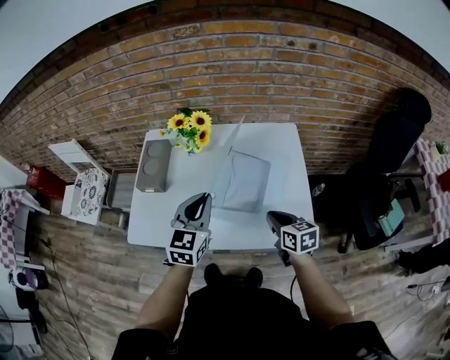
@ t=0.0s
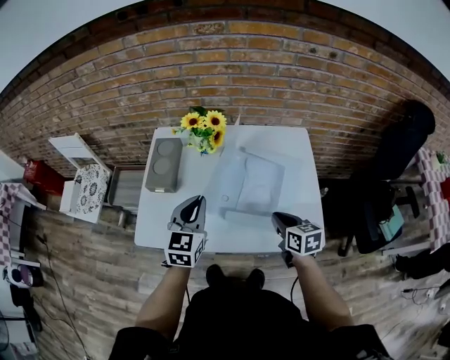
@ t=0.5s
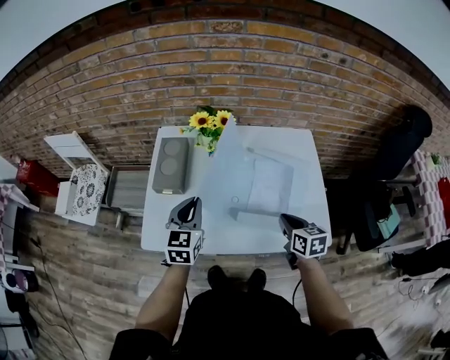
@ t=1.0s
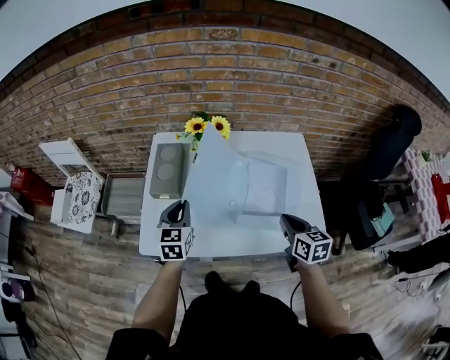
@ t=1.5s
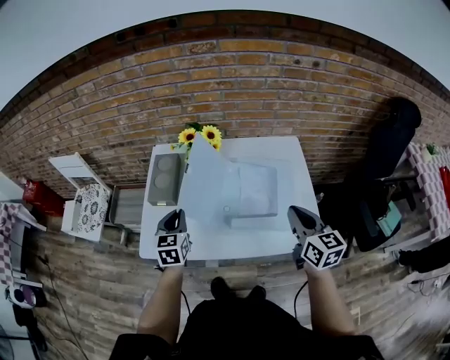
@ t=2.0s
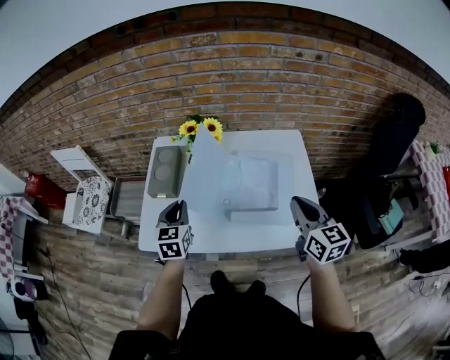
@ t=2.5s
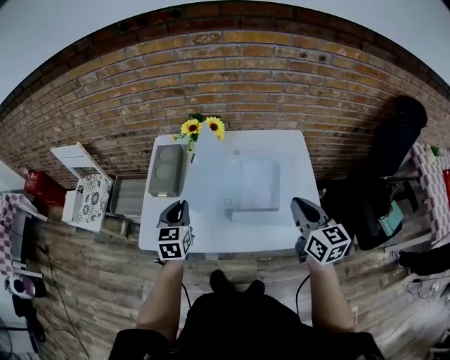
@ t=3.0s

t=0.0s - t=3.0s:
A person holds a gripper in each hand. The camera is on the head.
t=0.0s - t=1.5s: The left gripper moves to the left and downward, some 20 cm, while the right gripper ends up about 5 cm from where it was.
t=1.5s - t=3.0s: The right gripper heads upward, covering roughly 10 cm.

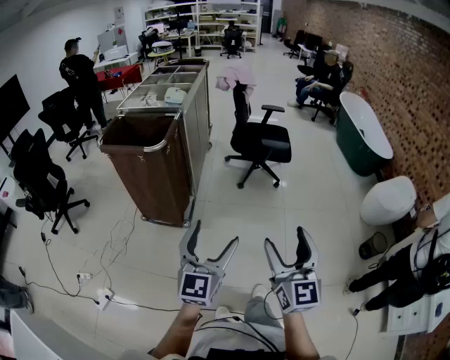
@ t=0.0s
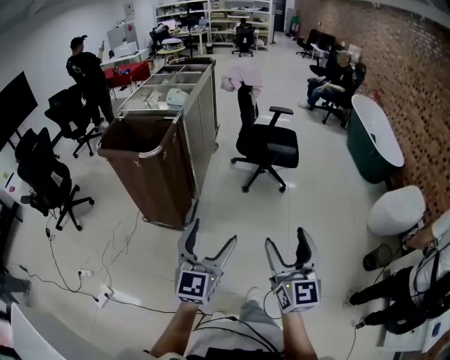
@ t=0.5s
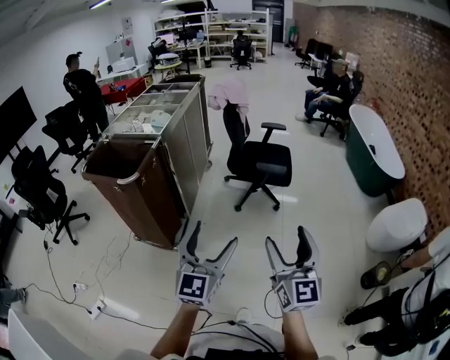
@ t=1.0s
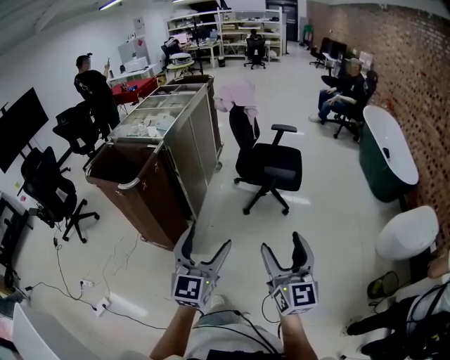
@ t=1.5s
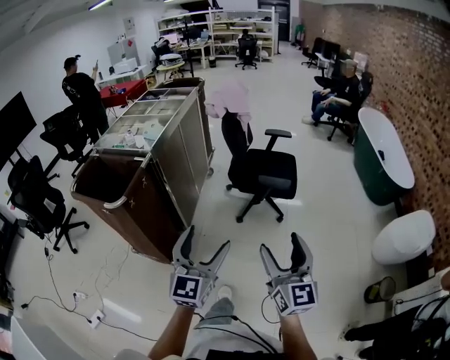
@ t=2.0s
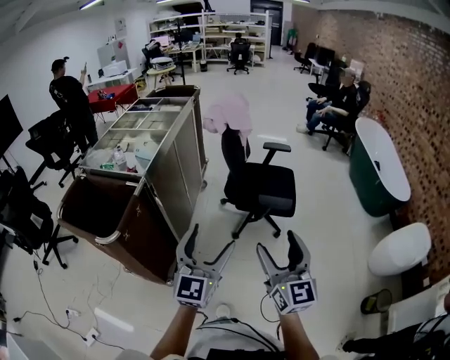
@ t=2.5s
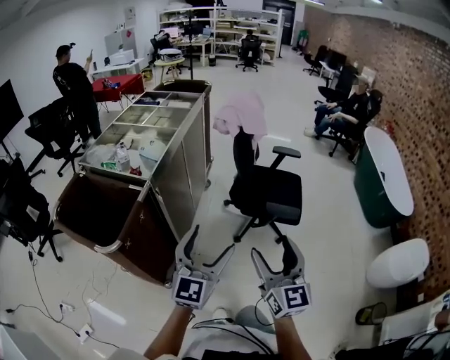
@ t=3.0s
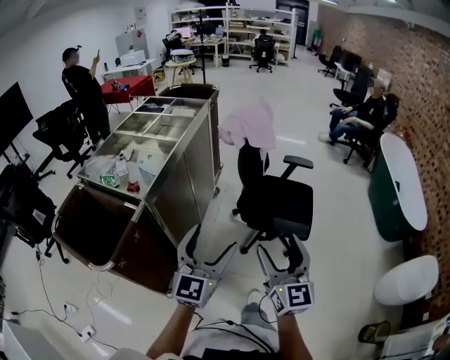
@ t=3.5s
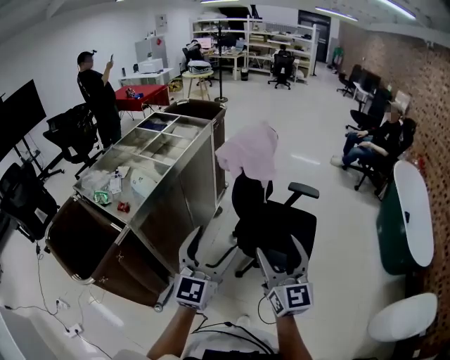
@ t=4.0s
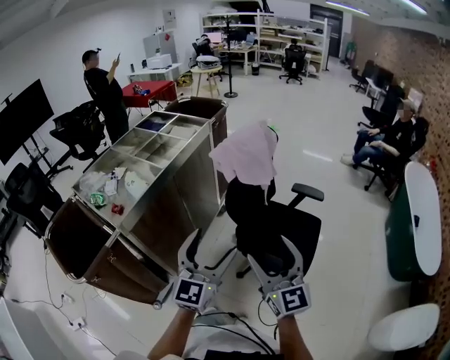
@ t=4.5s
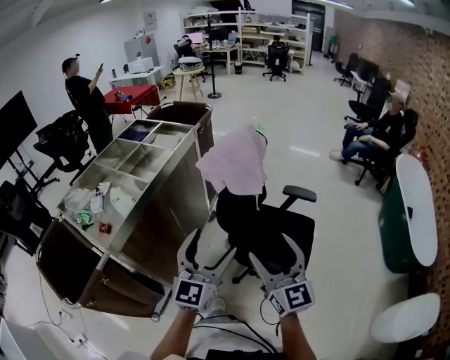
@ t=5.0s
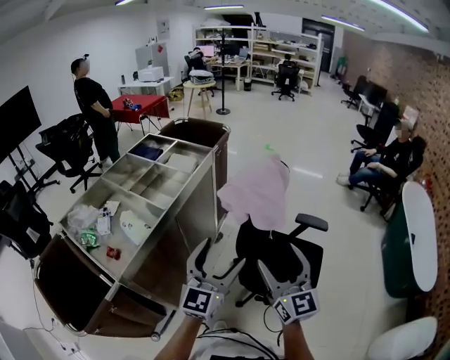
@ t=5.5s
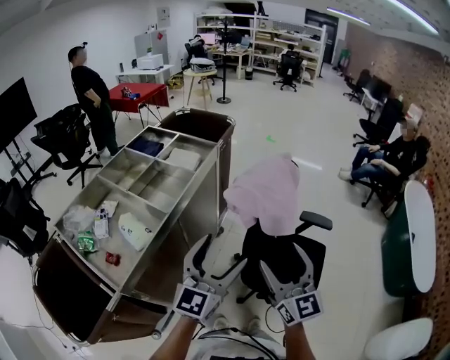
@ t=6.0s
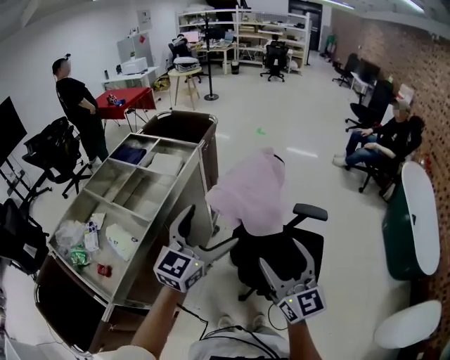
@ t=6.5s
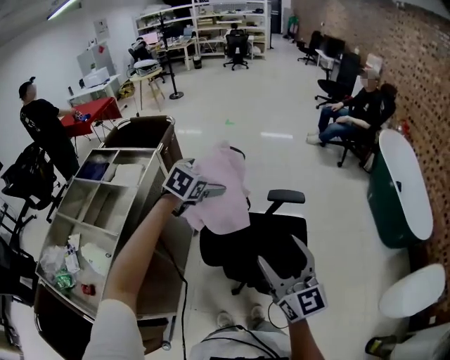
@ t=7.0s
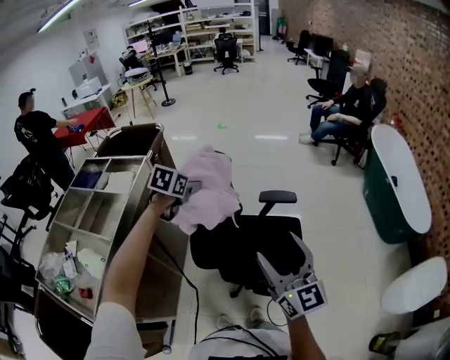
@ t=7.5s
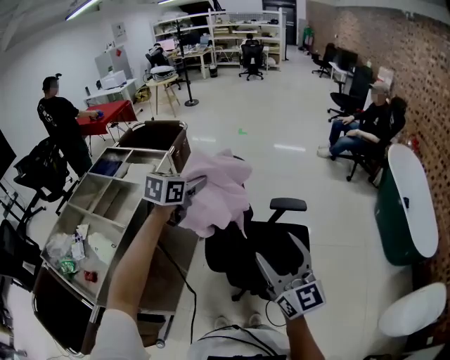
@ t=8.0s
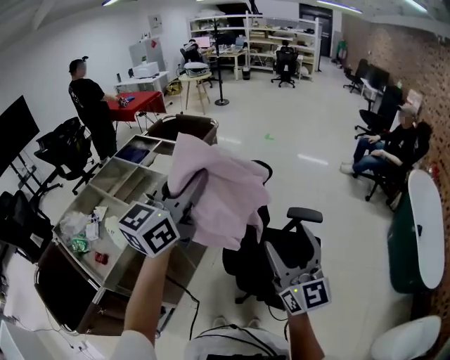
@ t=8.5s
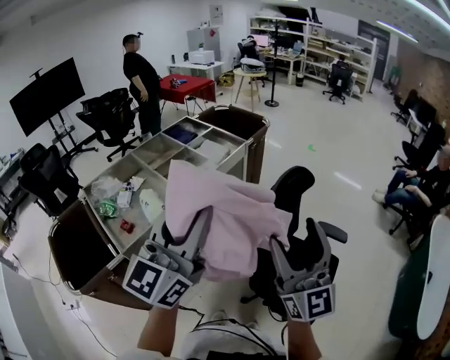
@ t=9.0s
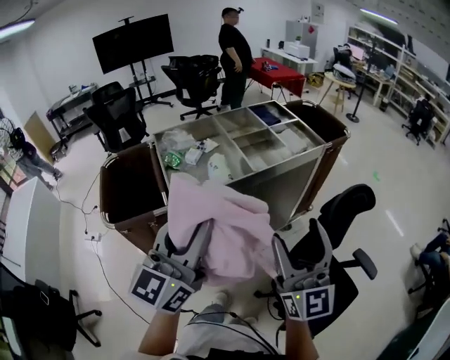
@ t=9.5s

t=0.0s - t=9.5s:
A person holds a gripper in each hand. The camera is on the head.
t=0.0s - t=2.0s: Both grippers travel together forward and to the right, approximately 35 cm.
t=2.0s - t=4.0s: The pair of grippers is taken forward, approximately 50 cm.
t=4.0s - t=5.5s: The grippers both shift forward by approximately 20 cm.
t=5.5s - t=7.5s: The left gripper moves forward, approximately 35 cm, and points its fingers roughly 50 degrees further downward; the right gripper travels to the right by about 15 cm.
t=7.5s - t=9.5s: The left gripper ends up approximately 60 cm from where it was, and angles its fingers upward, by some 60 degrees. Meanwhile the right gripper ends up approximately 25 cm from where it was, and swivels roughly 50 degrees.

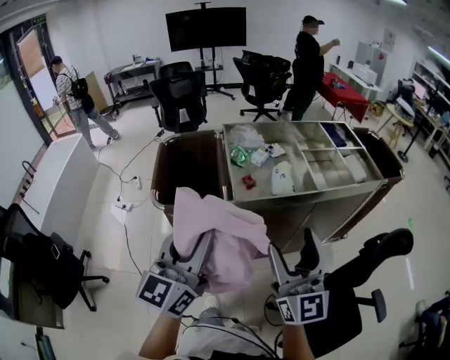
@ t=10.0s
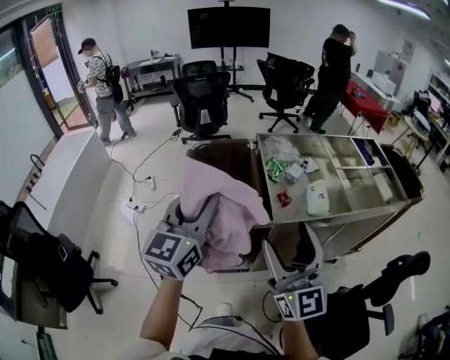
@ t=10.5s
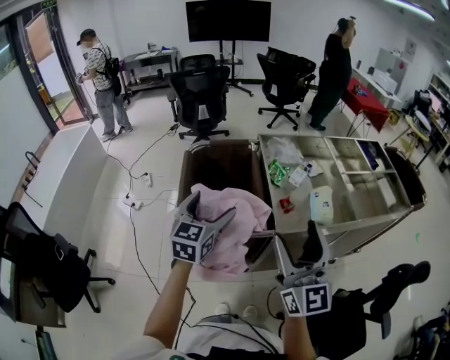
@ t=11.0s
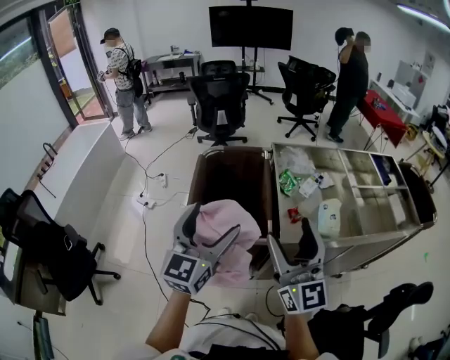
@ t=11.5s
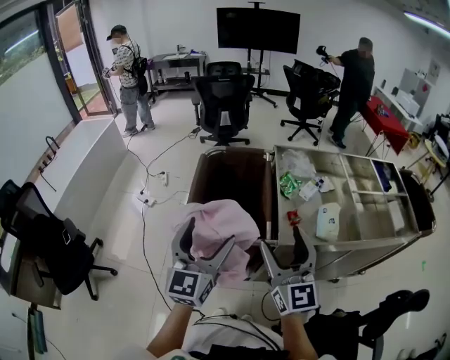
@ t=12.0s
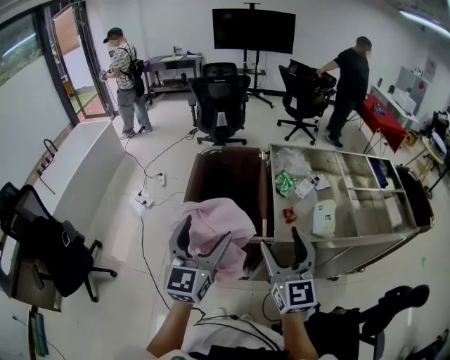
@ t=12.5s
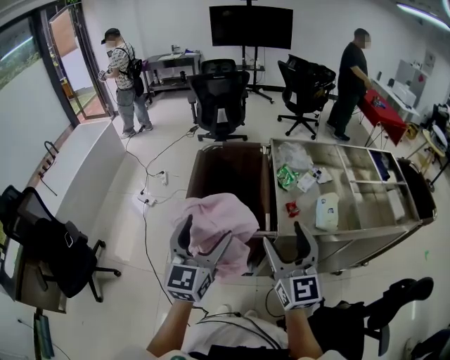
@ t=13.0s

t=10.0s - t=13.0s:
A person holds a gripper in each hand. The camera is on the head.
t=10.0s - t=11.5s: The two grippers go roughly 20 cm forward and to the left. The left gripper opens its fingers.
t=11.5s - t=13.0s: The left gripper shifts by approximately 5 cm. Meanwhile the right gripper heads downward, covering roughly 5 cm.

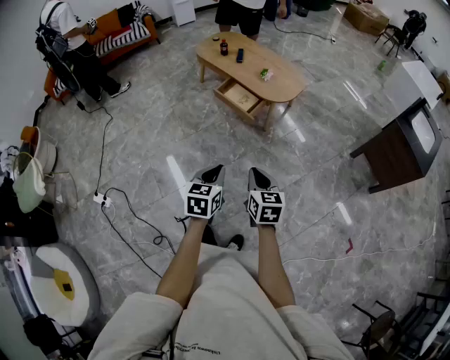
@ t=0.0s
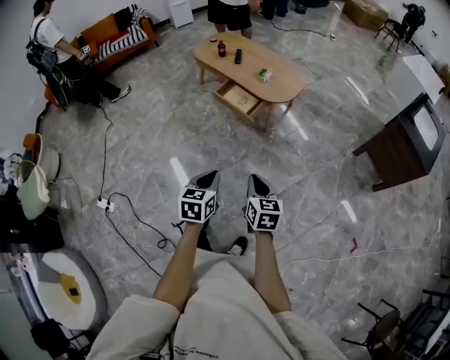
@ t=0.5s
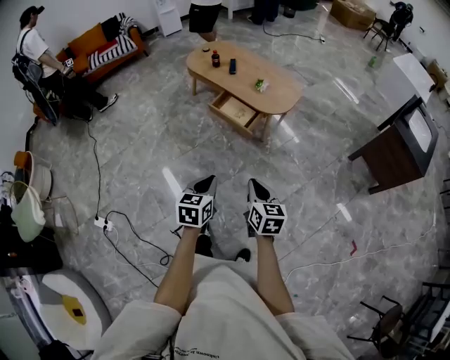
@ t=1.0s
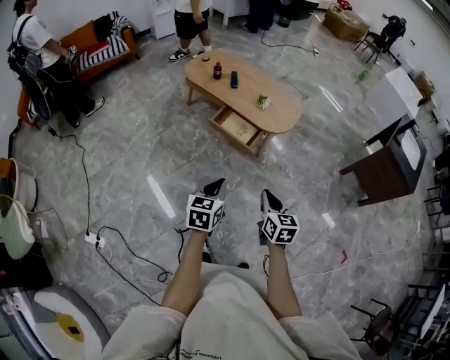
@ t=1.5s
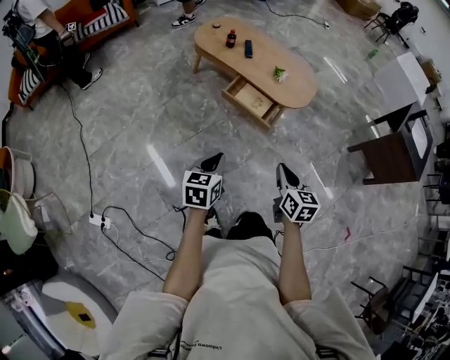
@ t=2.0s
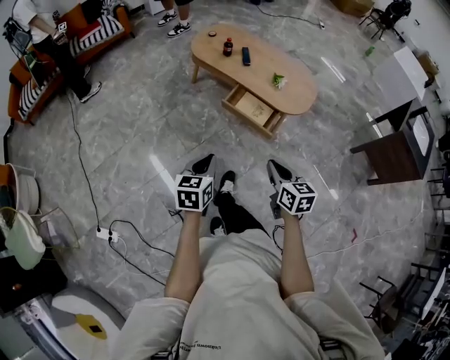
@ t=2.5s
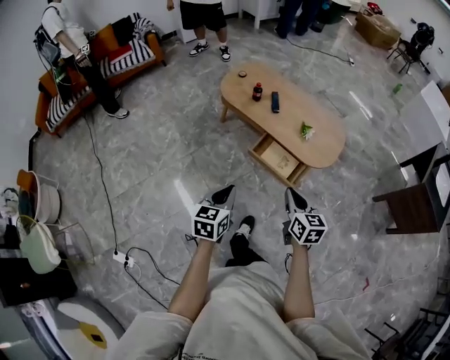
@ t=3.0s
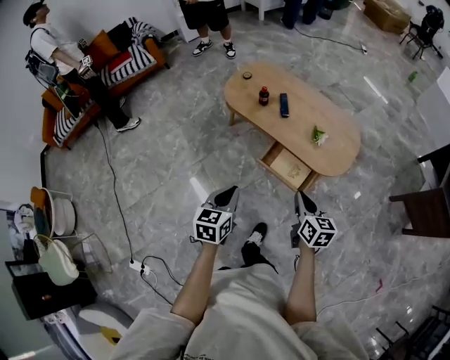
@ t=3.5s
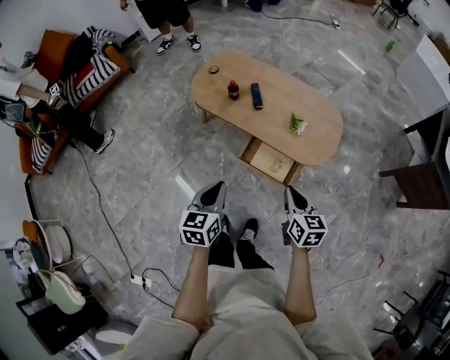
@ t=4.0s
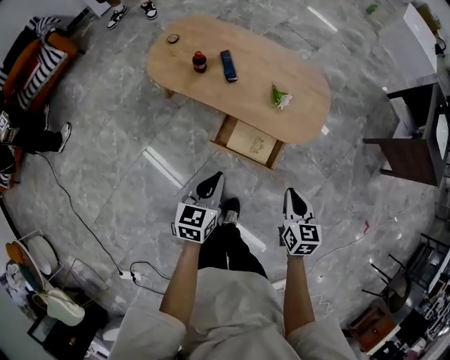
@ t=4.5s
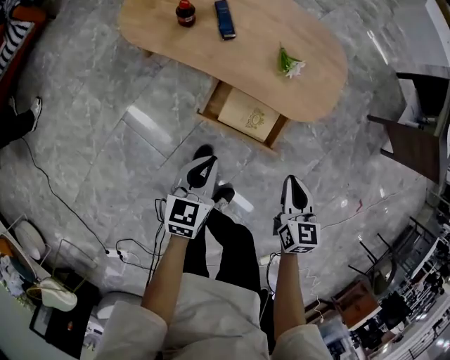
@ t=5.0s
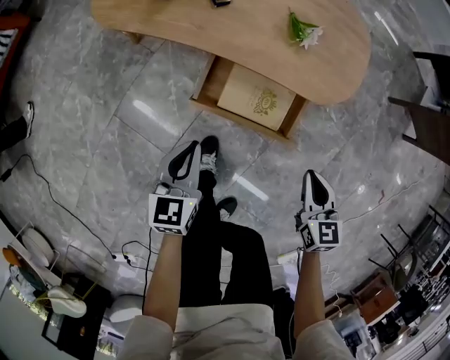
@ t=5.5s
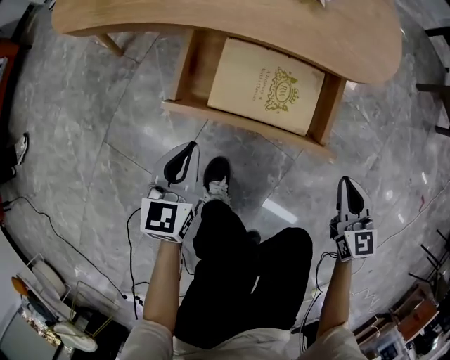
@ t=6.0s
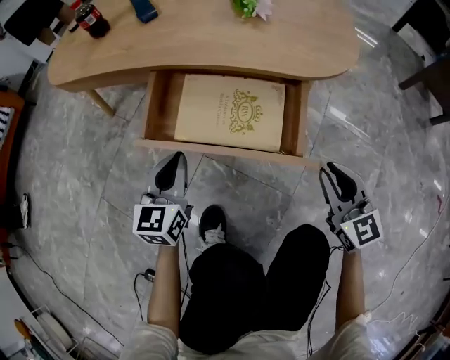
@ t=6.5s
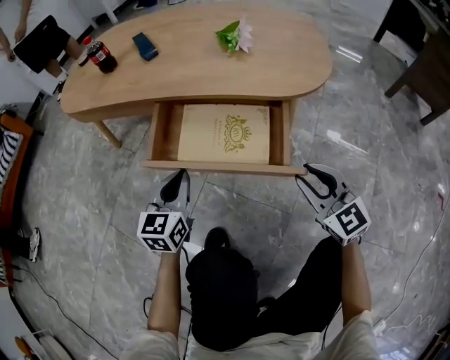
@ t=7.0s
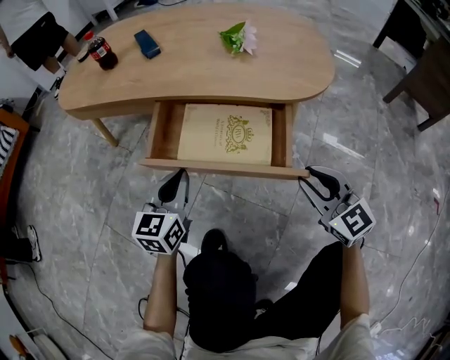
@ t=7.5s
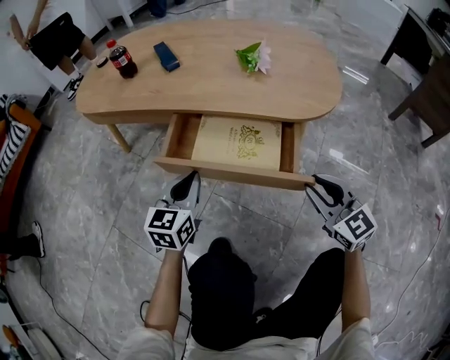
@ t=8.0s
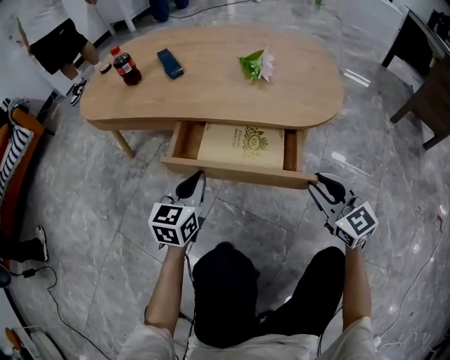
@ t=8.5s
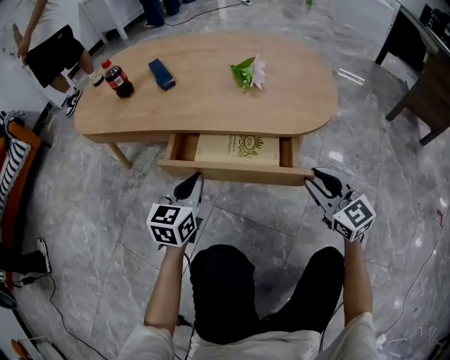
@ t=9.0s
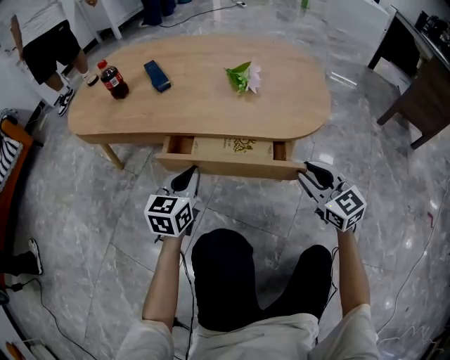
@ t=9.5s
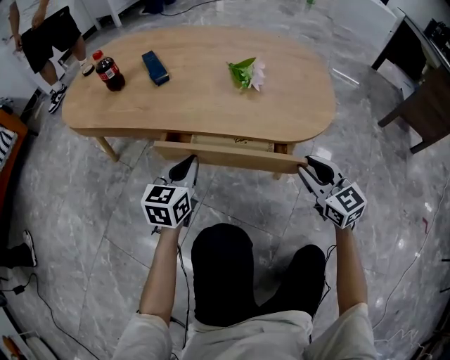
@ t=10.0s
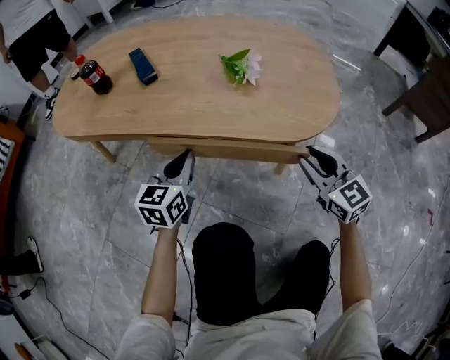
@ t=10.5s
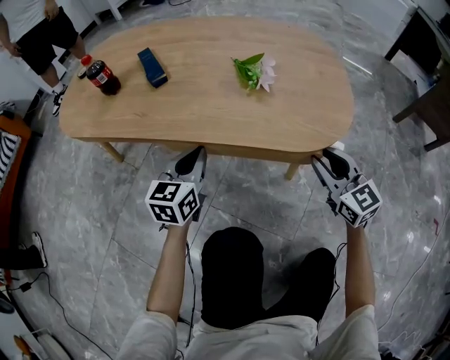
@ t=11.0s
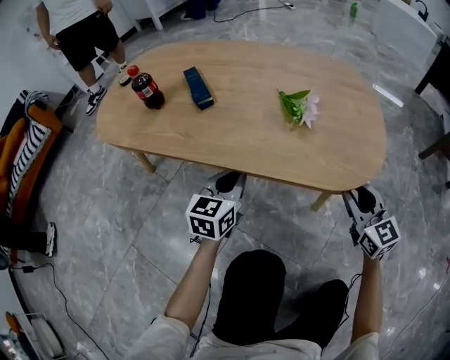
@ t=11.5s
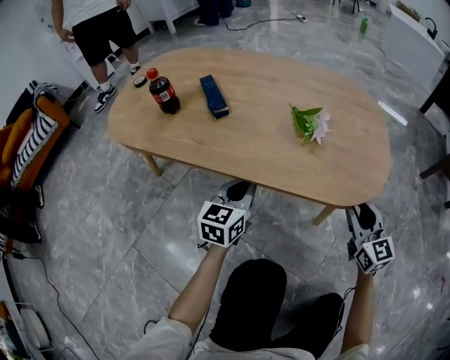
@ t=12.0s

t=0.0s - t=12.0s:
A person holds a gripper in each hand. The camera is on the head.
t=0.0s - t=2.0s: The left gripper travels to the left and forward by some 30 cm. Meanwhile the right gripper shifts roughly 25 cm forward and to the left.
t=2.0s - t=4.0s: The grippers both shift forward by some 35 cm.
t=4.0s - t=6.0s: The grippers both shift downward by approximately 50 cm. The right gripper rotates about 20 degrees.
t=6.0s - t=8.0s: The right gripper travels forward by about 5 cm, turns by roughly 30 degrees, and opens up, while the left gripper moves roughly 5 cm.
t=8.0s - t=10.0s: Both grippers move forward, about 10 cm.
t=10.0s - t=12.0s: Both grippers travel together forward, some 5 cm.
